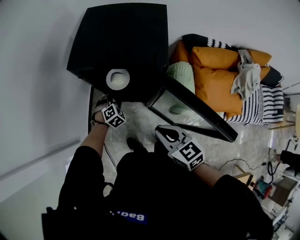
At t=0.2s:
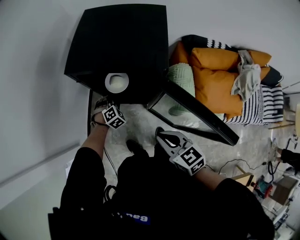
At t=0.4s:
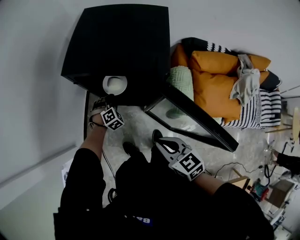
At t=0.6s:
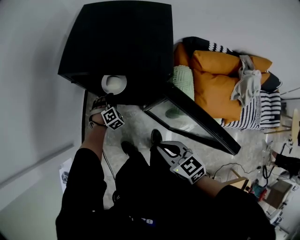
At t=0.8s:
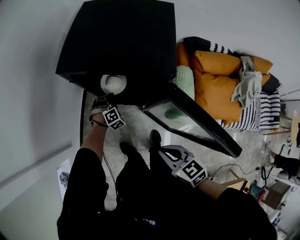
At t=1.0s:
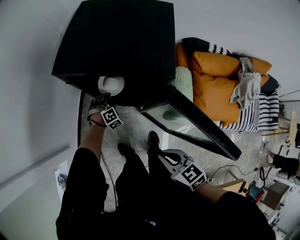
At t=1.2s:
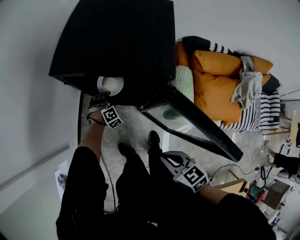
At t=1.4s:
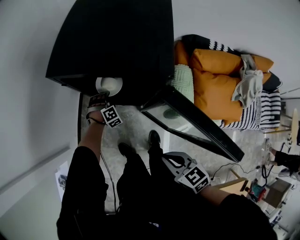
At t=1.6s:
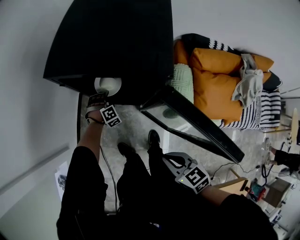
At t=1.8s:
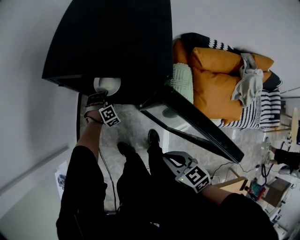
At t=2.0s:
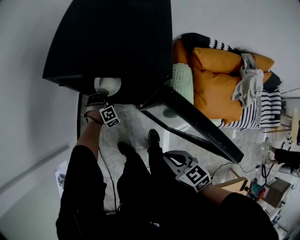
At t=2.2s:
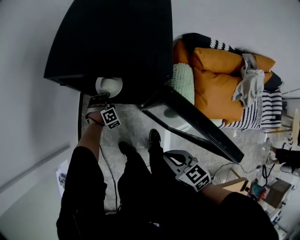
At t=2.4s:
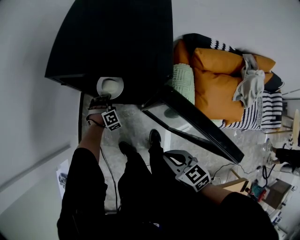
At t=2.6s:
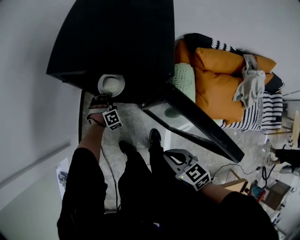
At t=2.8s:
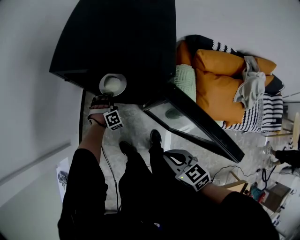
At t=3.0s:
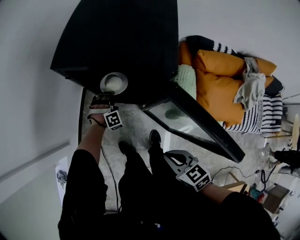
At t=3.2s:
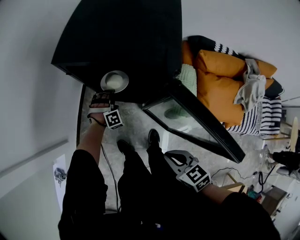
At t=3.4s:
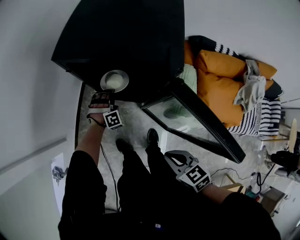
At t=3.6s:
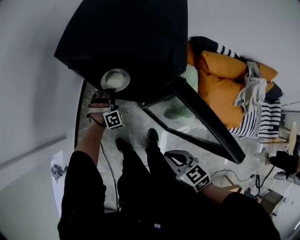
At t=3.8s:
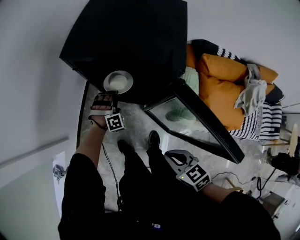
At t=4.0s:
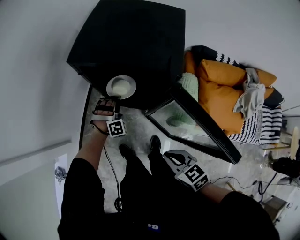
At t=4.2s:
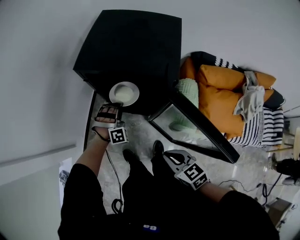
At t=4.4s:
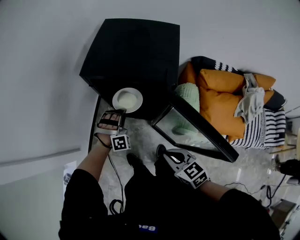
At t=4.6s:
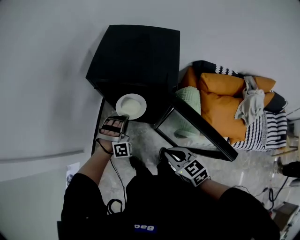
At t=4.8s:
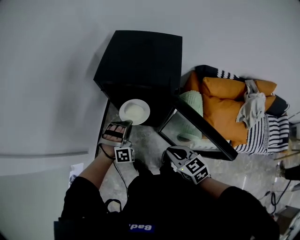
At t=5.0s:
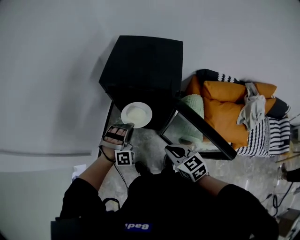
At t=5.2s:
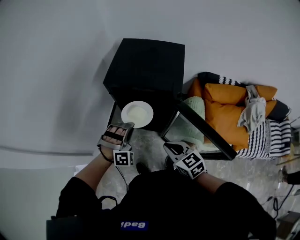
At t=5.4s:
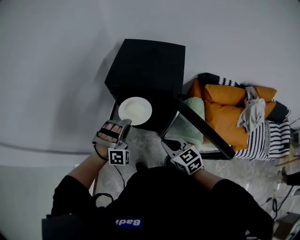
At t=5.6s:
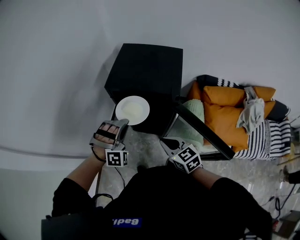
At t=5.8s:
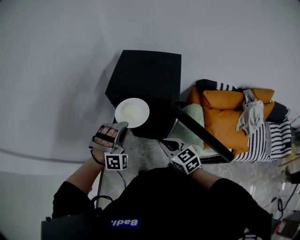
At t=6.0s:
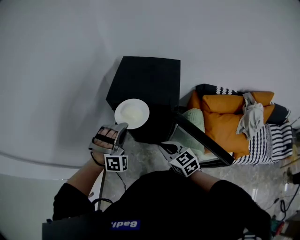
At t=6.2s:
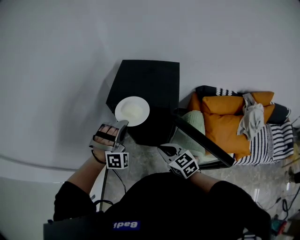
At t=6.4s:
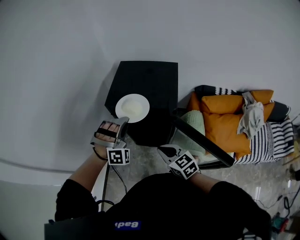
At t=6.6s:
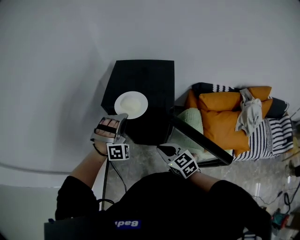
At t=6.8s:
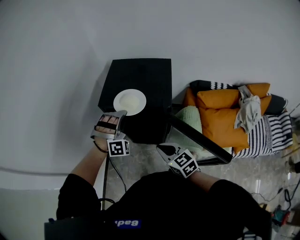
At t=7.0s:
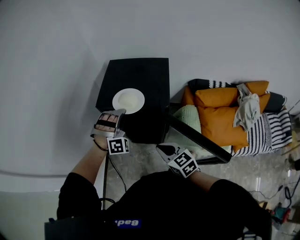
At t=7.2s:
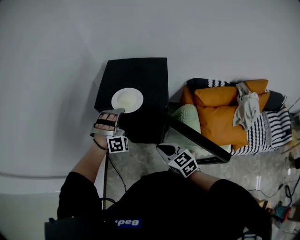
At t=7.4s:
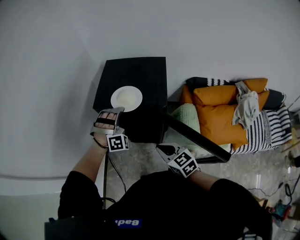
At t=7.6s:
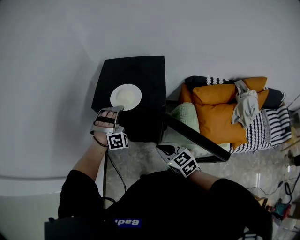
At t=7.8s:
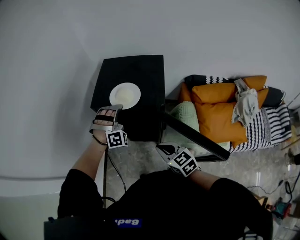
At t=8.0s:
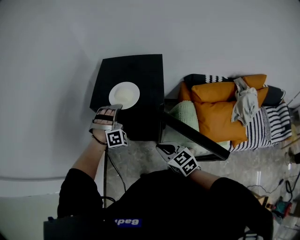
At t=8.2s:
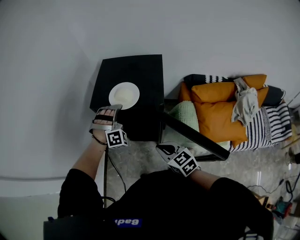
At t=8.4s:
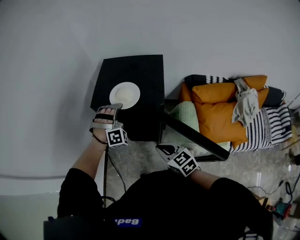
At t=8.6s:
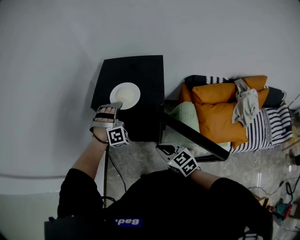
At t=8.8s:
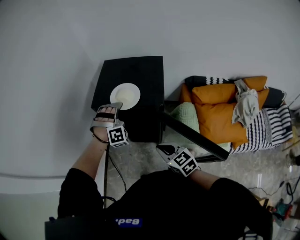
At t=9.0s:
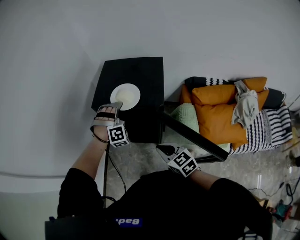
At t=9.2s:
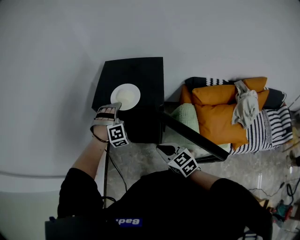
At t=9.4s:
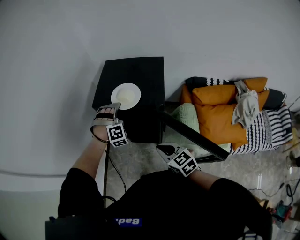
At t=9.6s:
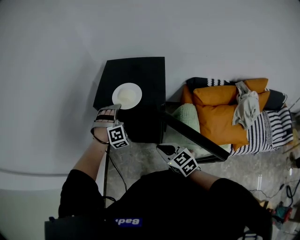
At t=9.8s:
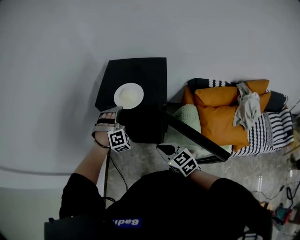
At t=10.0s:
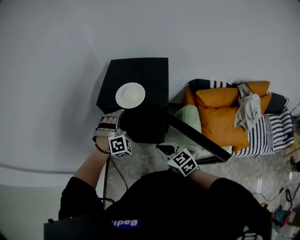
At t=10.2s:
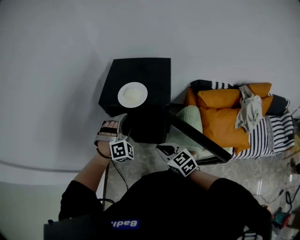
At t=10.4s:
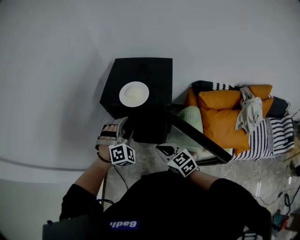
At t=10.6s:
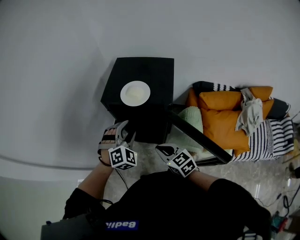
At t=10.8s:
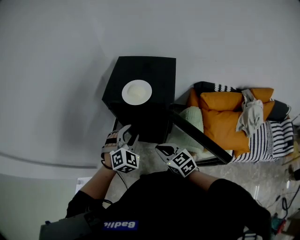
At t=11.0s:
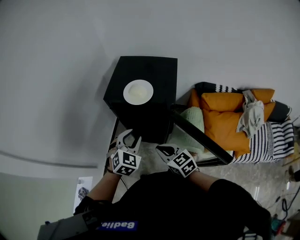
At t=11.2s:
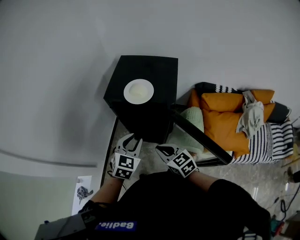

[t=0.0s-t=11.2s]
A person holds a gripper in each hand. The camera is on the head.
t=0.0s to t=1.6s: The left gripper moves downward and forward, roughly 15 cm, and turns by about 20 degrees, while the right gripper shifts about 10 cm downward and backward.
t=1.6s to t=3.2s: The left gripper goes some 5 cm upward, and closes its fingers.
t=3.2s to t=4.8s: The left gripper goes approximately 25 cm upward and backward. Meanwhile the right gripper shifts approximately 10 cm upward.
t=4.8s to t=6.4s: The right gripper heads forward and upward, covering about 10 cm, while the left gripper heads upward, covering about 20 cm.
t=6.4s to t=8.0s: The left gripper heads forward, downward and to the right, covering approximately 10 cm.
t=8.0s to t=9.6s: The left gripper opens its fingers.
t=9.6s to t=11.2s: The left gripper travels backward by roughly 15 cm, rotates around the line of its fingers by some 70 degrees, counterclockwise from behind, and closes.

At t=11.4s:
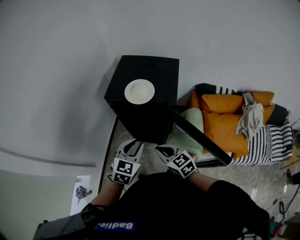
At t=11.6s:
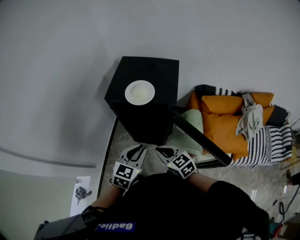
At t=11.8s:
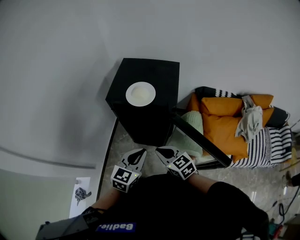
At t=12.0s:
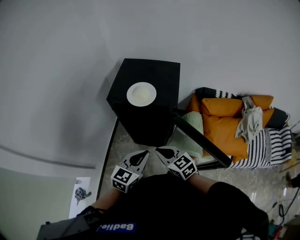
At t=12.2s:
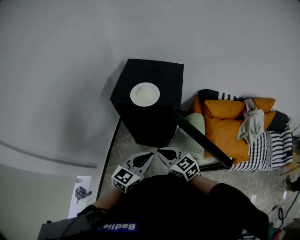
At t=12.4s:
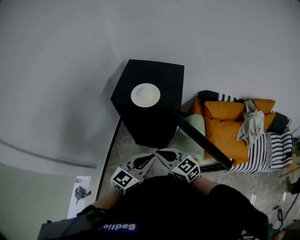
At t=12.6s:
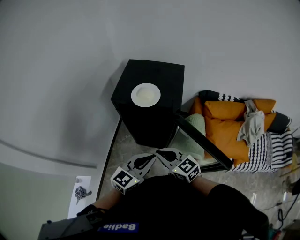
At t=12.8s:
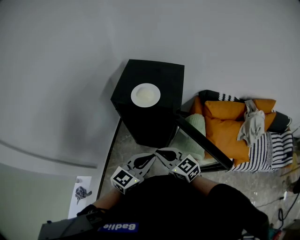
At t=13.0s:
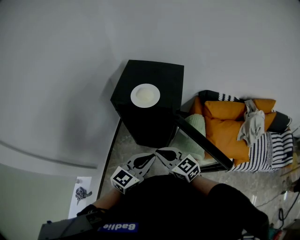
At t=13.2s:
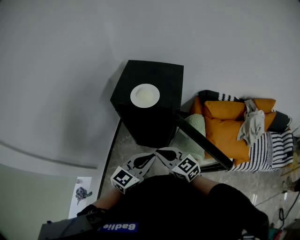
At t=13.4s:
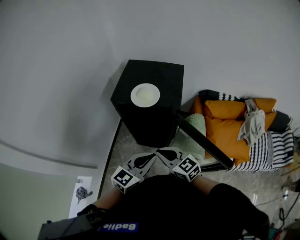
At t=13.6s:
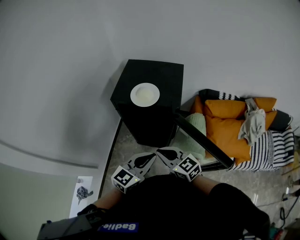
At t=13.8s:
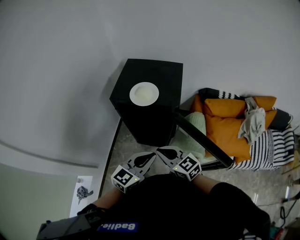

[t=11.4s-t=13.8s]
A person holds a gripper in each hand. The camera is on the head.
t=11.4s to t=12.6s: The left gripper goes roughly 5 cm backward, changes its angle by about 30 degrees, and closes.
t=12.6s to t=13.8s: The two grippers keep their place.

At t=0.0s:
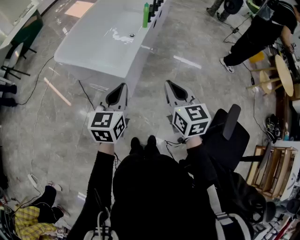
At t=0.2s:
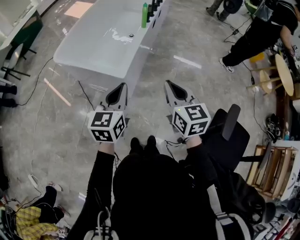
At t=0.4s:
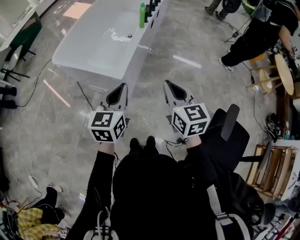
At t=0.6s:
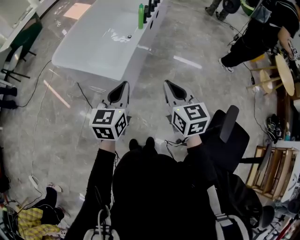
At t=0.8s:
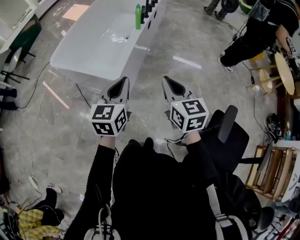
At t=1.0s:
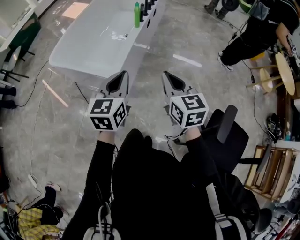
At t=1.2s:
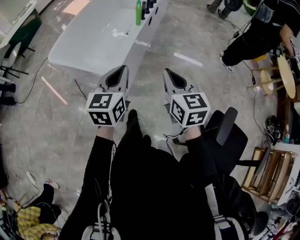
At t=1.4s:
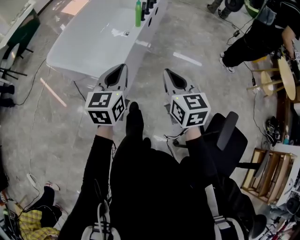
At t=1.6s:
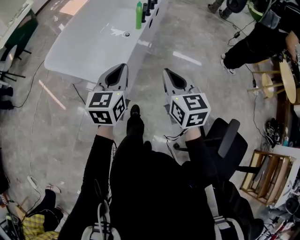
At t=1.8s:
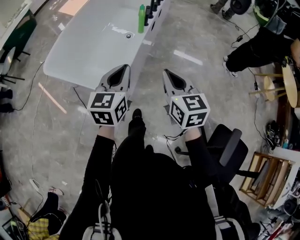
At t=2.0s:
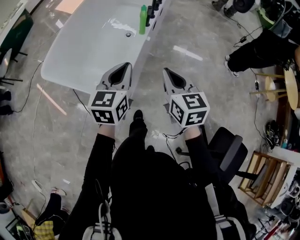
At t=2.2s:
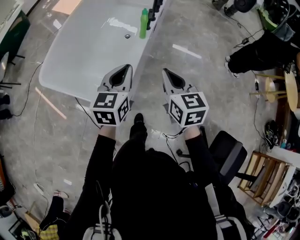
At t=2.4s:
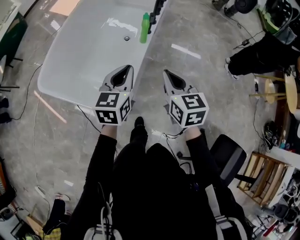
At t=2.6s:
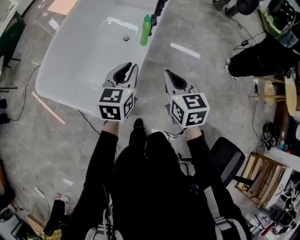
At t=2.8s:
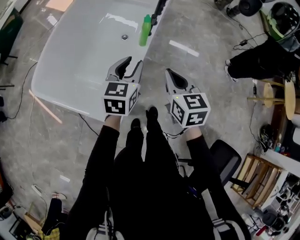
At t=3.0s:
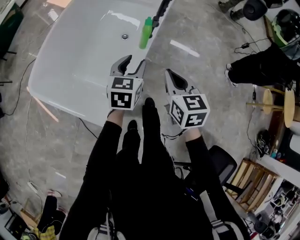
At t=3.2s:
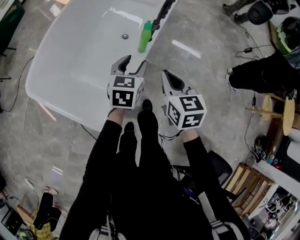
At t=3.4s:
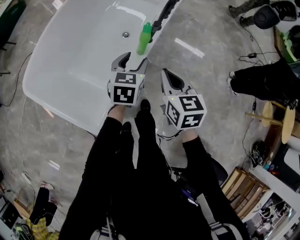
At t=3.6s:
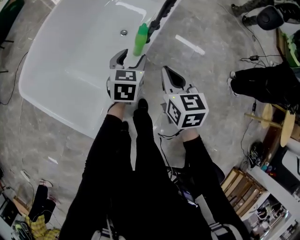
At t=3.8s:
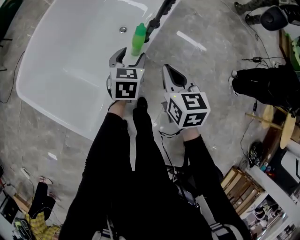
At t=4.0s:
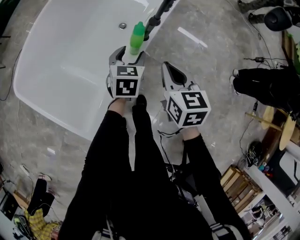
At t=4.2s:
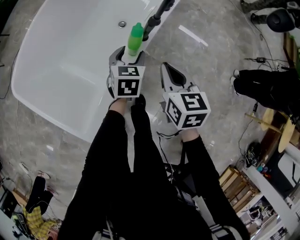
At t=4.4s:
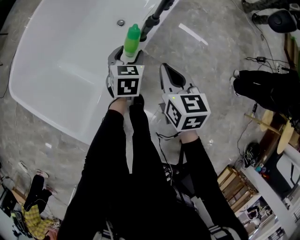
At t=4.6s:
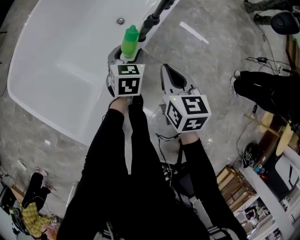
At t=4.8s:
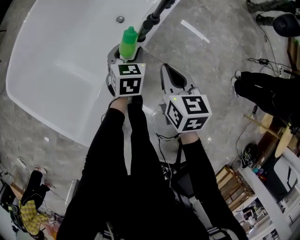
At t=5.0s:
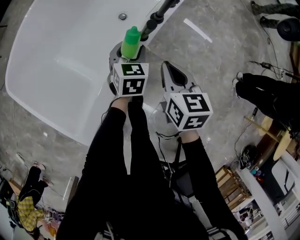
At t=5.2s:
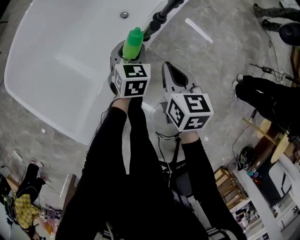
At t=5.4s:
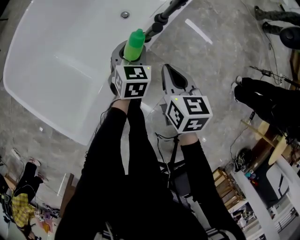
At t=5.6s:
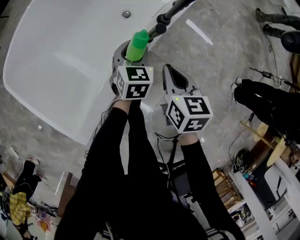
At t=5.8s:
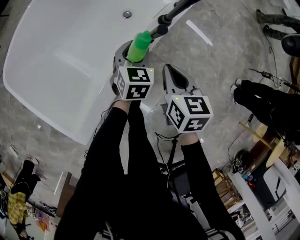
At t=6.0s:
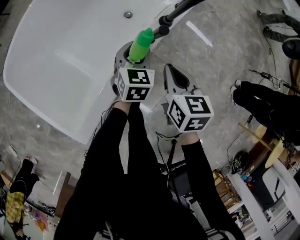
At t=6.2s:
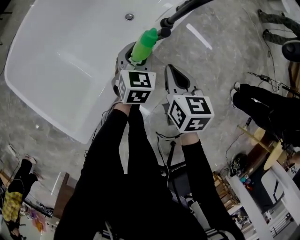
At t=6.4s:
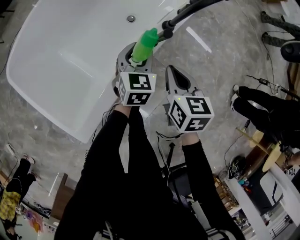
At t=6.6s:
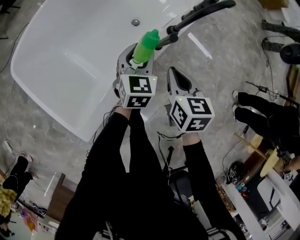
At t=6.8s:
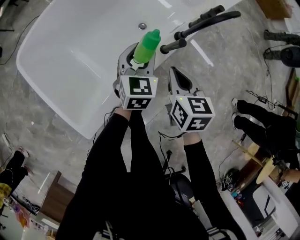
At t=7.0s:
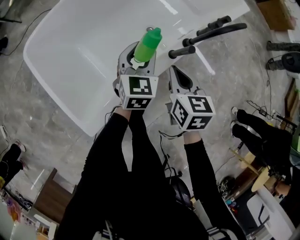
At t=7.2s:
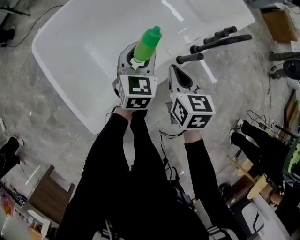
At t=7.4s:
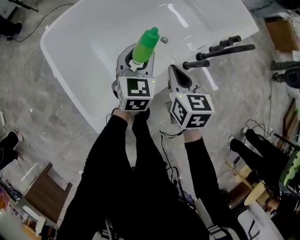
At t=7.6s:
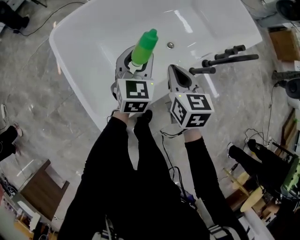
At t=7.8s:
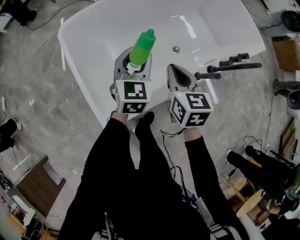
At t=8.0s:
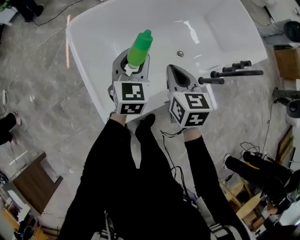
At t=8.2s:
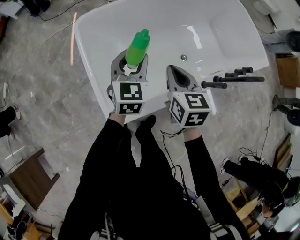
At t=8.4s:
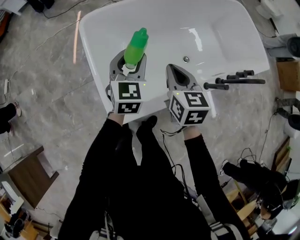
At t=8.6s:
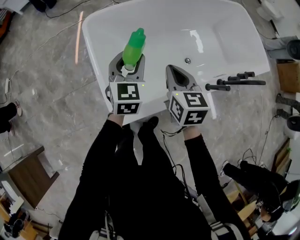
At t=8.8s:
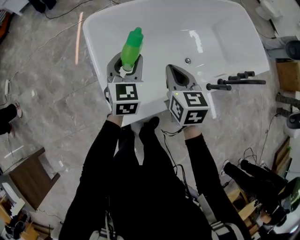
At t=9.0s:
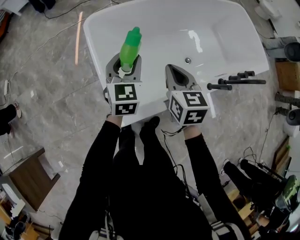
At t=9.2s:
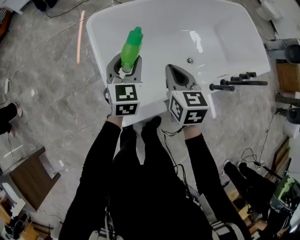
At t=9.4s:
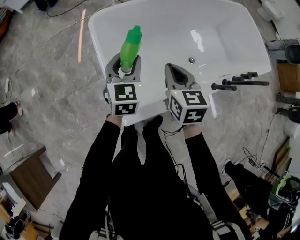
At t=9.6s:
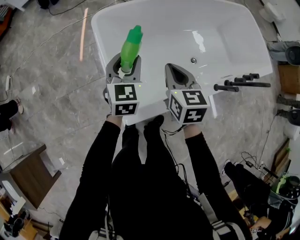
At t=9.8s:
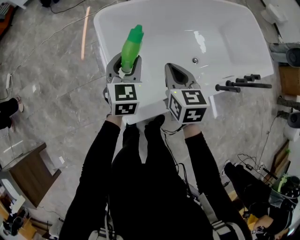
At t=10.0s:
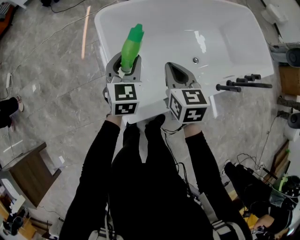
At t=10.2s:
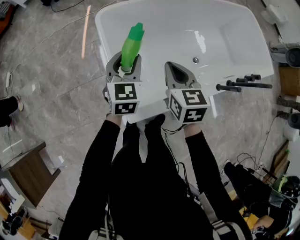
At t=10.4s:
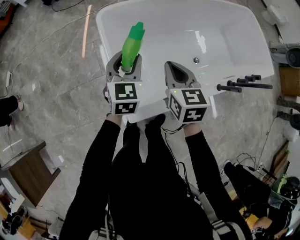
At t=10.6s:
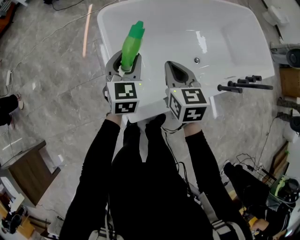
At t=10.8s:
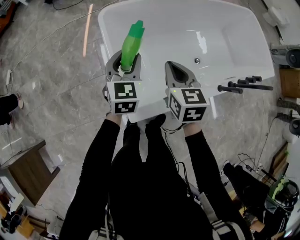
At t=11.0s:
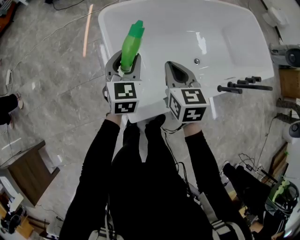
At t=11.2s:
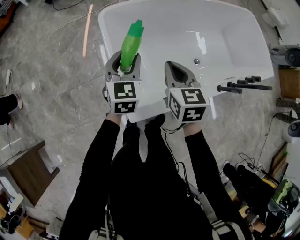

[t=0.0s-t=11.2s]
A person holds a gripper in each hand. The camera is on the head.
t=0.0s to t=1.6s: Both grippers travel together forward, about 15 cm.
t=1.6s to t=3.2s: The left gripper shifts approximately 40 cm forward and downward, and opens up. The right gripper travels forward by approximately 30 cm.
t=3.2s to t=4.8s: The right gripper moves forward, downward and to the right, some 15 cm; the left gripper heads downward and forward, covering roughly 20 cm.
t=4.8s to t=6.4s: The grippers make only small movements.
t=6.4s to t=8.0s: The left gripper changes place by roughly 35 cm, and turns by some 30 degrees. Meanwhile the right gripper changes place by approximately 30 cm, and swivels some 30 degrees.
t=8.0s to t=9.6s: The two grippers go approximately 15 cm to the left.
t=9.6s to t=11.2s: The grippers stay close to where they were, moving slightly.
